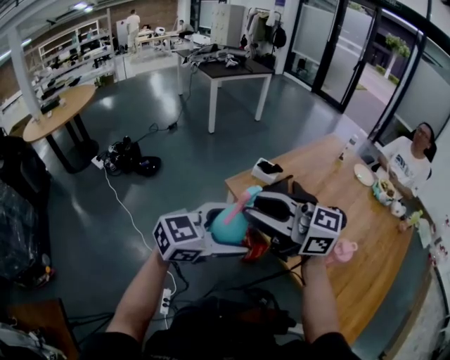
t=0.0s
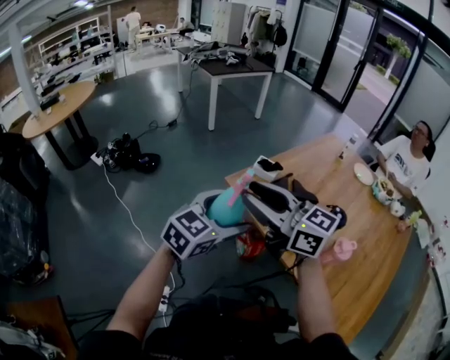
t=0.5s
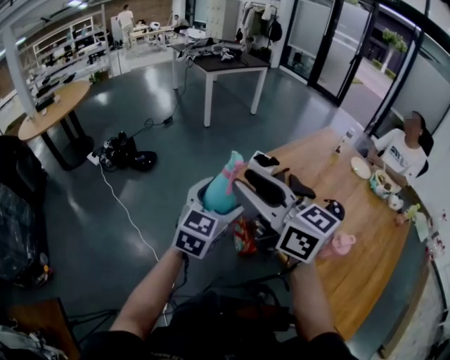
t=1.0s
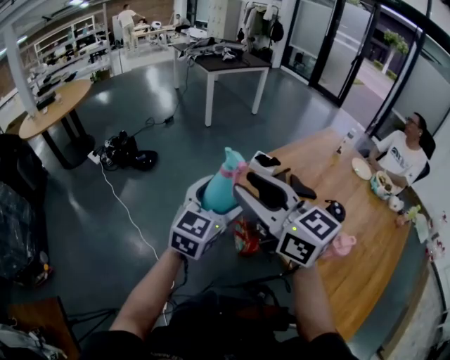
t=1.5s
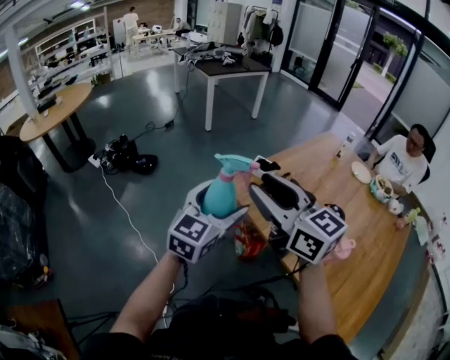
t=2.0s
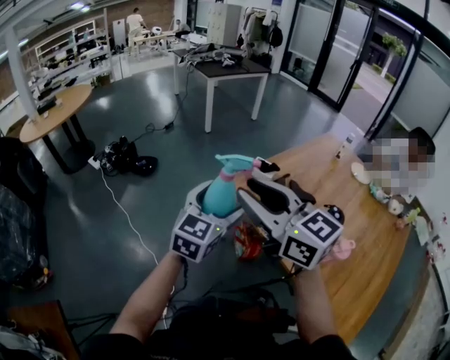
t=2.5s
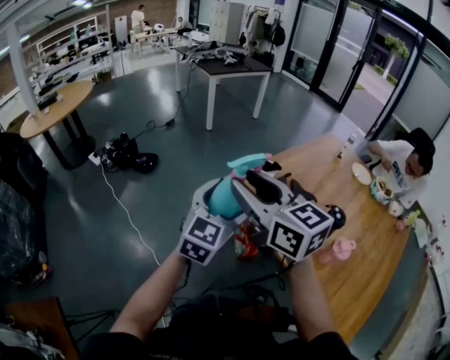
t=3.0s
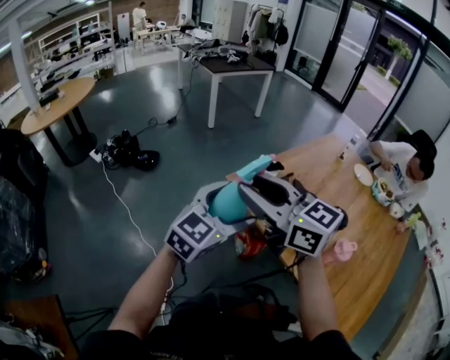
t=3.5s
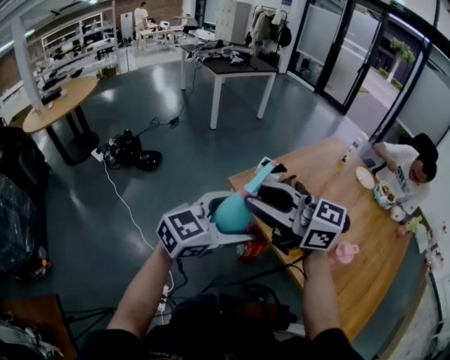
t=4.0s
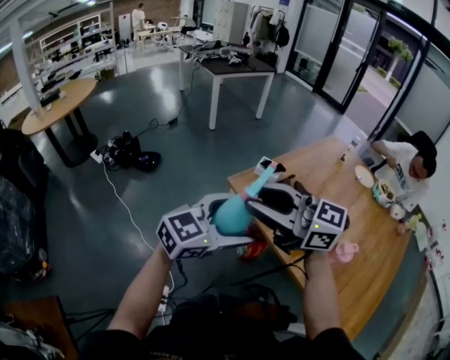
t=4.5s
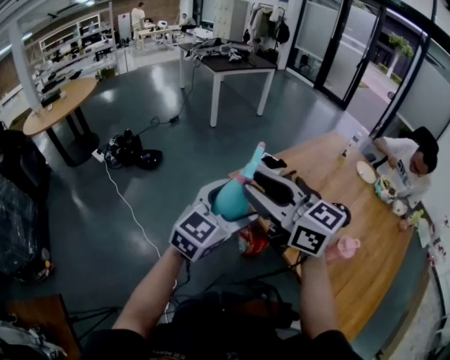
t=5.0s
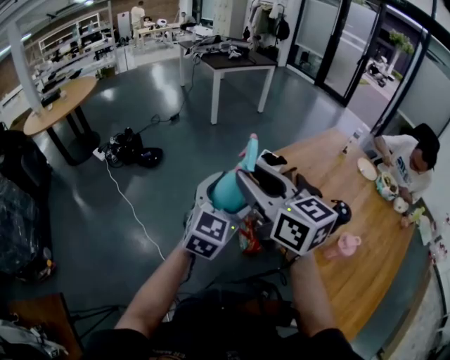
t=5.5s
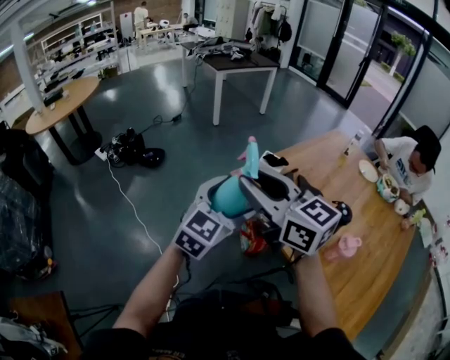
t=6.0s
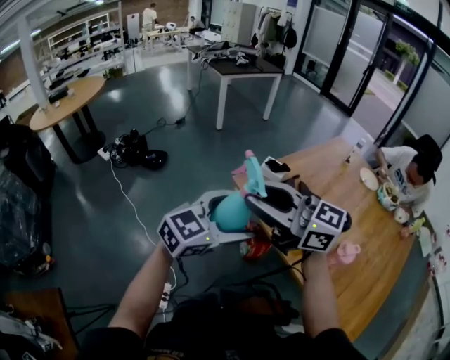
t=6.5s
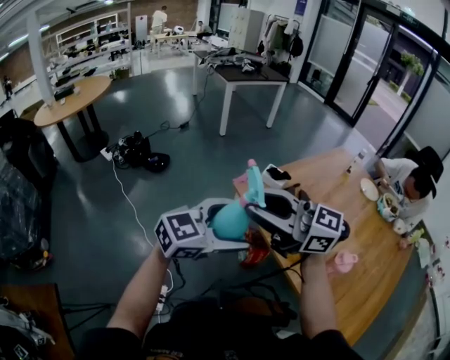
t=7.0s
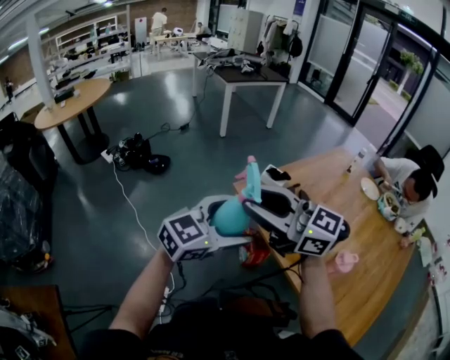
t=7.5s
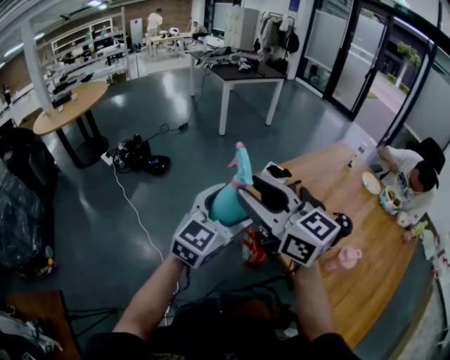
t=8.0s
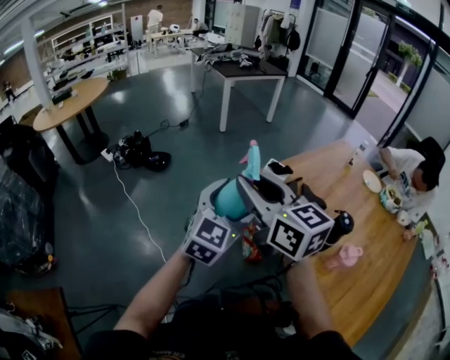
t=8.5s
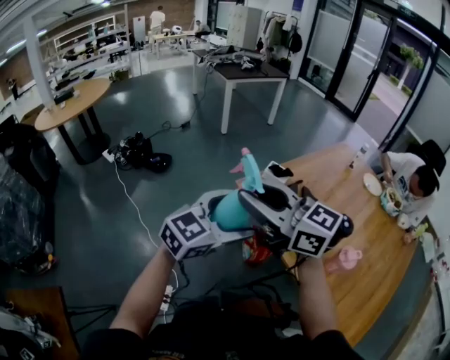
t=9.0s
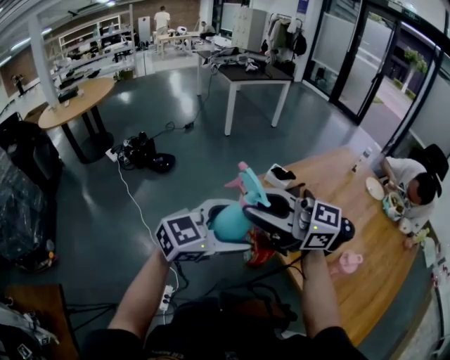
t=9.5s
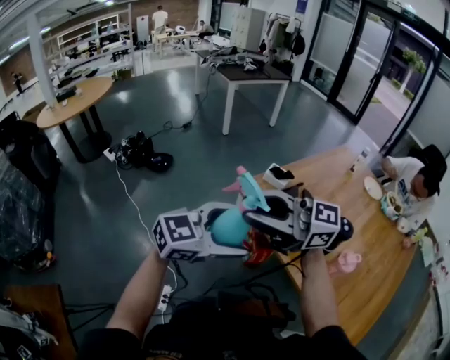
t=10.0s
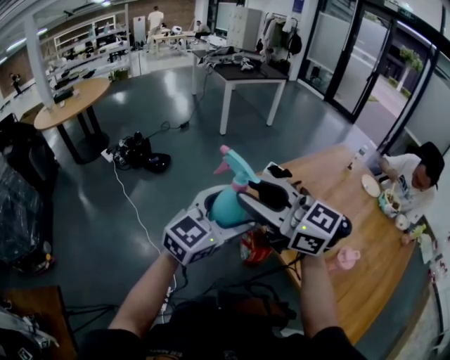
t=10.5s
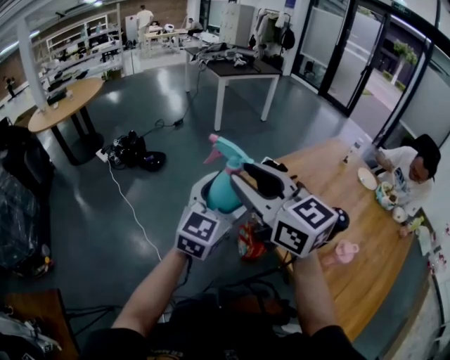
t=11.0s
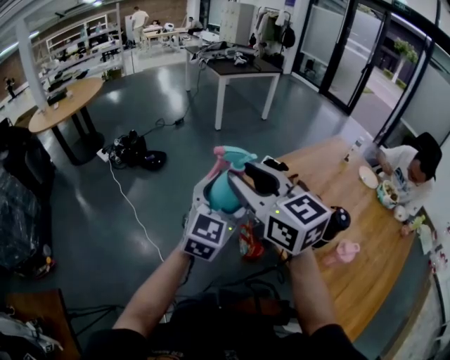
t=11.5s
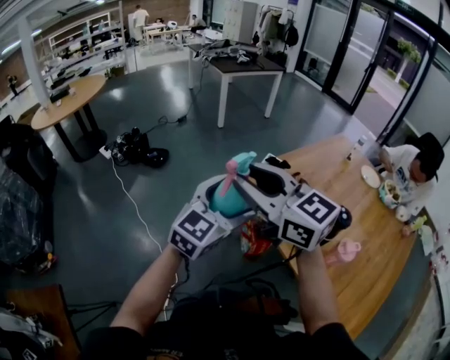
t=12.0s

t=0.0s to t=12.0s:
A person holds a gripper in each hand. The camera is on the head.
t=0.0s to t=2.0s: The left gripper shifts by about 10 cm, and turns by some 40 degrees, while the right gripper rotates about 30 degrees.
t=2.0s to t=4.0s: The right gripper changes its angle by approximately 30 degrees. The left gripper ends up about 5 cm from where it was, and changes its angle by roughly 30 degrees.
t=4.0s to t=6.0s: The left gripper swivels some 20 degrees. Meanwhile the right gripper turns by some 20 degrees.
t=8.0s to t=10.0s: The left gripper shifts by roughly 10 cm, and changes its angle by about 30 degrees; the right gripper swivels roughly 40 degrees.
t=10.0s to t=12.0s: The left gripper ends up some 5 cm from where it was, and changes its angle by about 30 degrees. The right gripper changes place by about 5 cm, and turns by some 30 degrees.

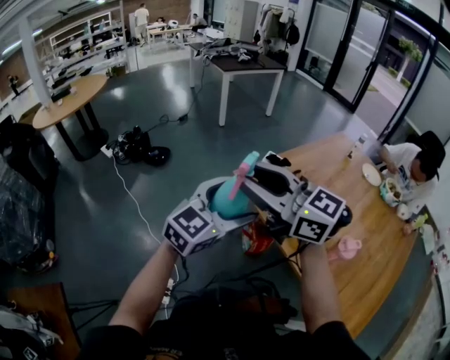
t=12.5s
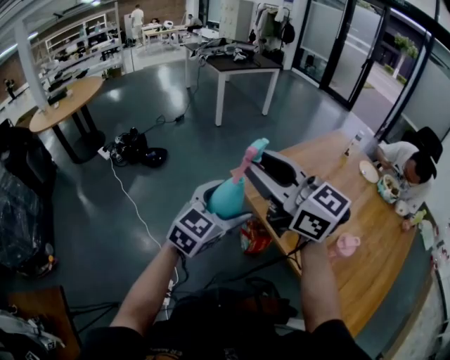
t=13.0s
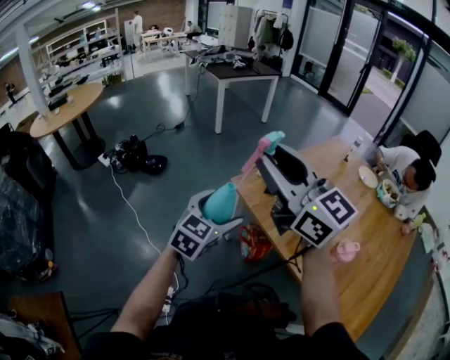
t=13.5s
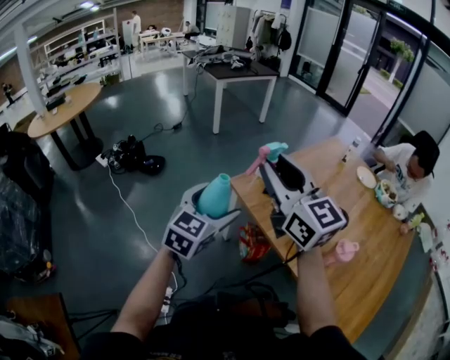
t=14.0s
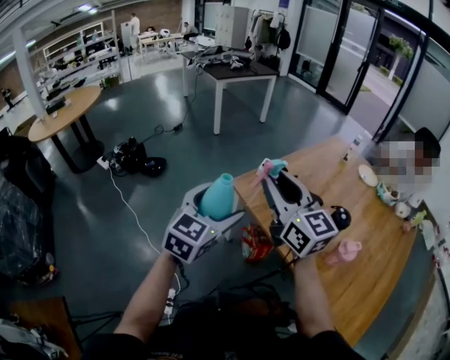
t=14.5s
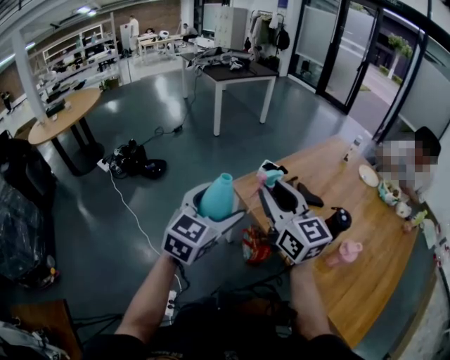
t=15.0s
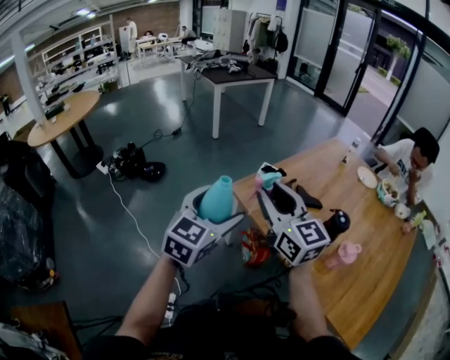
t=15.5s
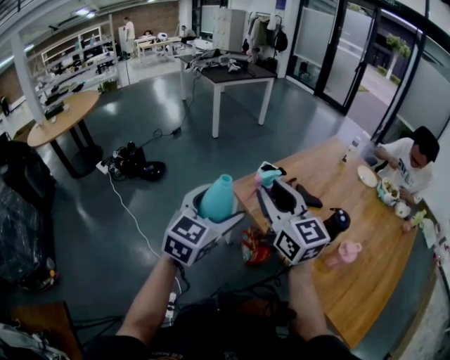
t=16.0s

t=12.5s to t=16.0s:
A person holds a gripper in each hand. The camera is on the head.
t=12.5s to t=14.5s: The right gripper heads to the right and forward, covering approximately 10 cm, and changes its angle by about 30 degrees.
t=14.5s to t=16.0s: There are only small adjustments of the grippers.

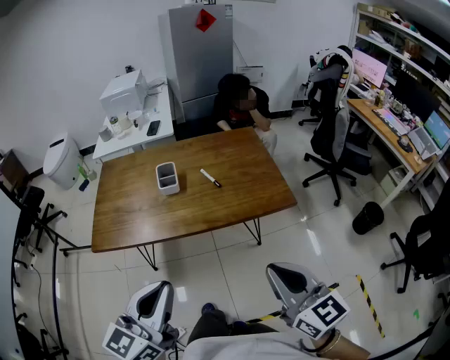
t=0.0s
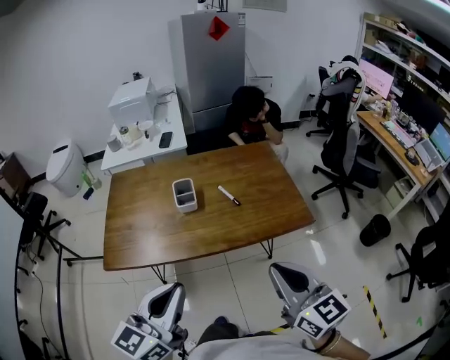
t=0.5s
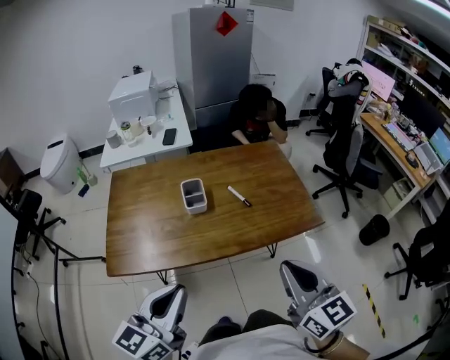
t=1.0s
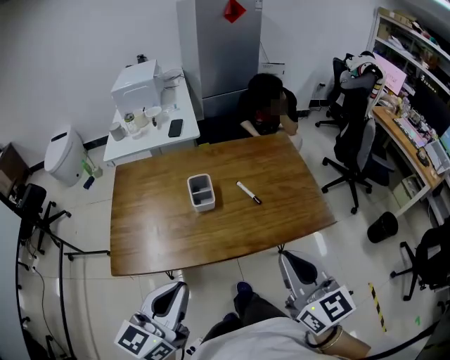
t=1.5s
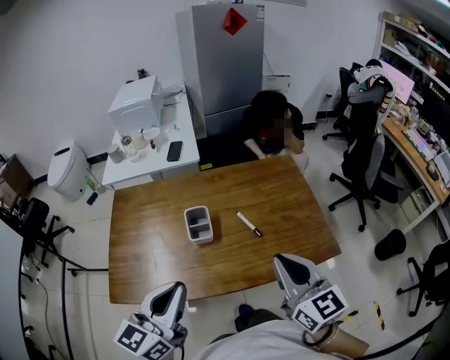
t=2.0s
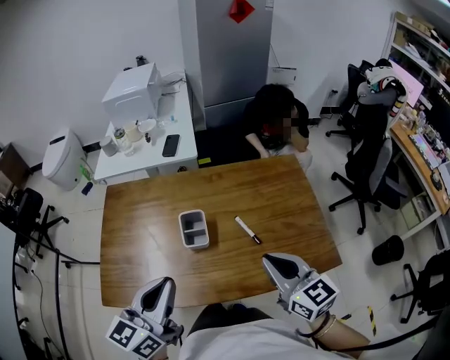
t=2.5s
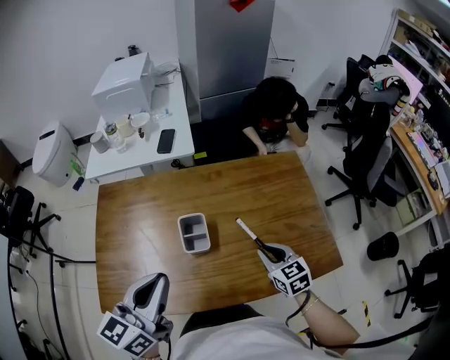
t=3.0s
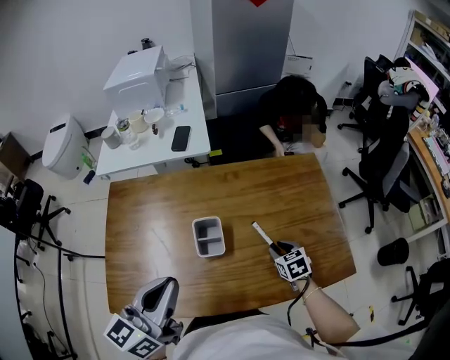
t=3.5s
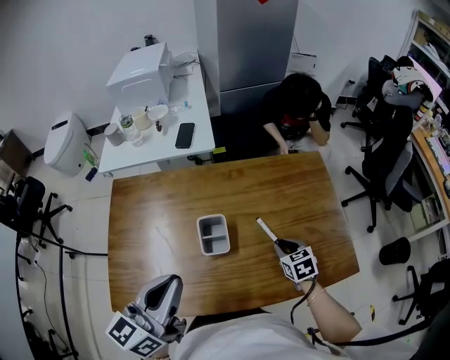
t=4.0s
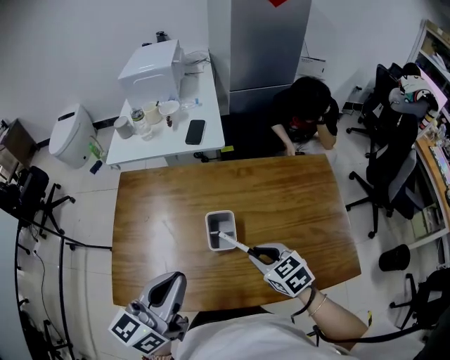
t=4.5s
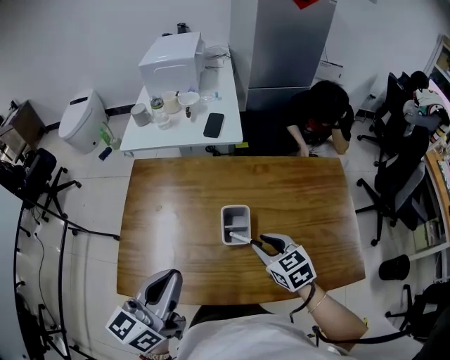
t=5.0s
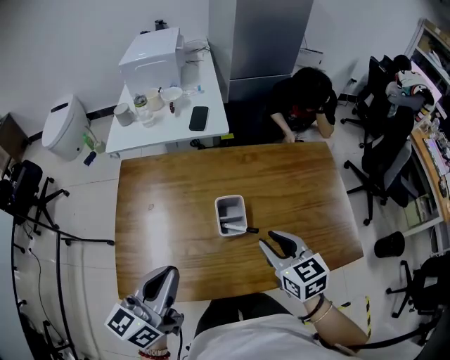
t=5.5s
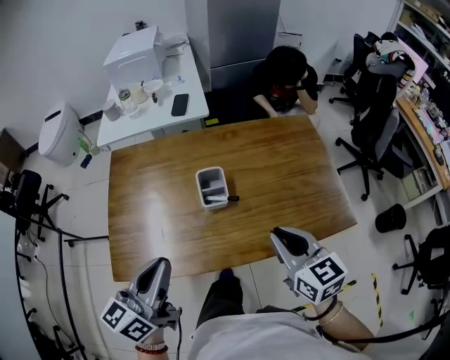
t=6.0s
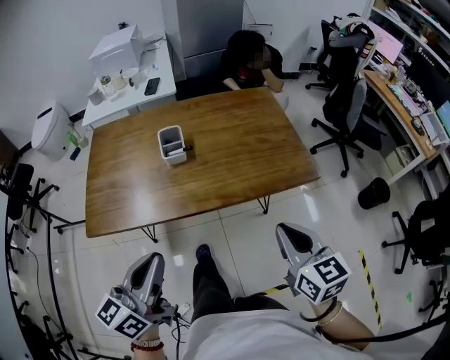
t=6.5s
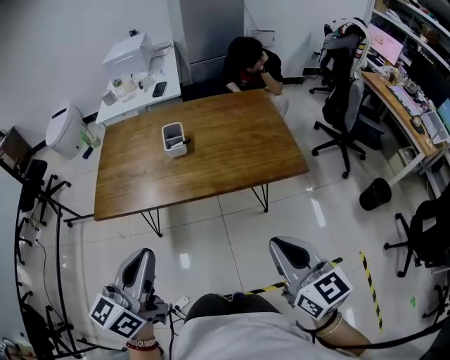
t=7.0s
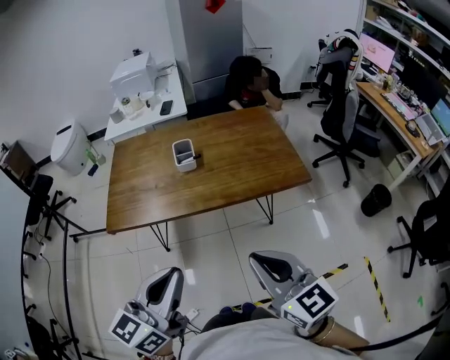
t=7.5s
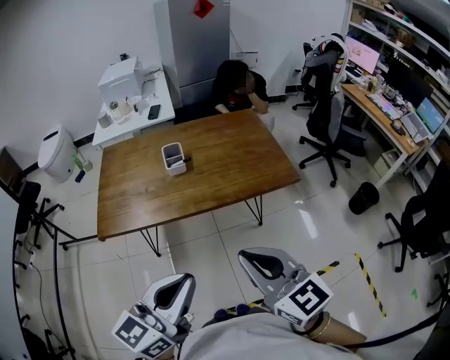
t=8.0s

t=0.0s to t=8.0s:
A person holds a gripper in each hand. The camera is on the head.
t=0.0s to t=2.0s: Both grippers move forward and to the left, about 30 cm.
t=2.0s to t=4.0s: The right gripper moves downward and forward, some 35 cm, and tips its fingers downward by some 50 degrees; the left gripper travels forward and to the left by some 15 cm.
t=4.0s to t=6.0s: The left gripper goes about 10 cm backward and to the left, while the right gripper heads upward, backward and to the left, covering roughly 30 cm, and swivels approximately 30 degrees.
t=6.0s to t=8.0s: The right gripper shifts roughly 35 cm backward, while the left gripper heads backward and to the right, covering about 35 cm.

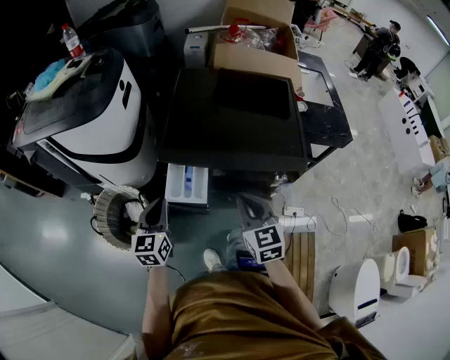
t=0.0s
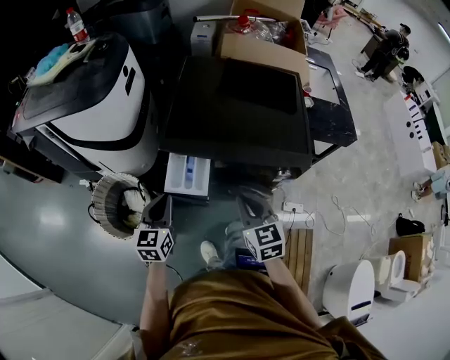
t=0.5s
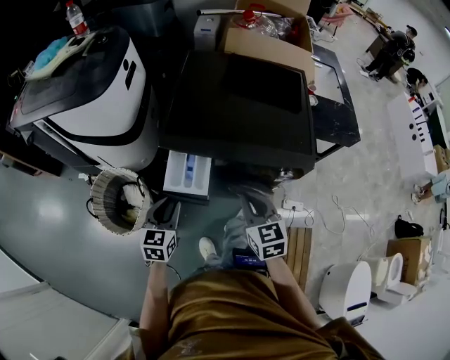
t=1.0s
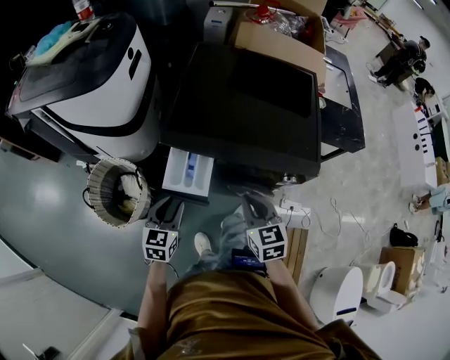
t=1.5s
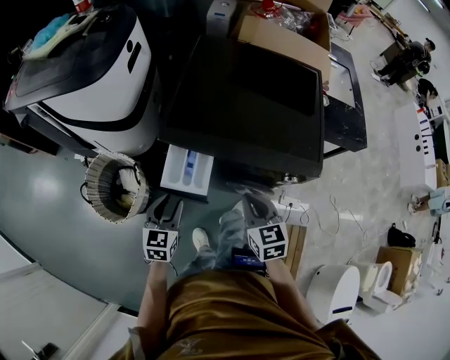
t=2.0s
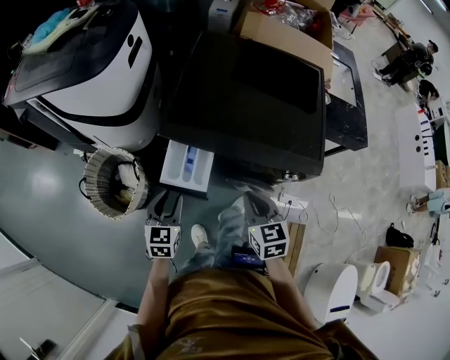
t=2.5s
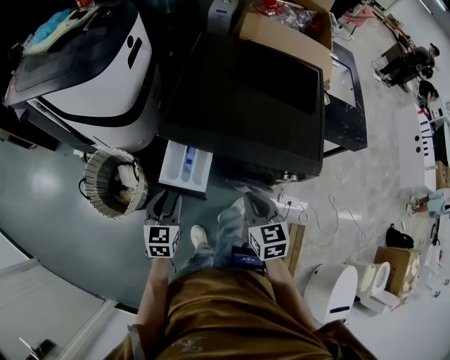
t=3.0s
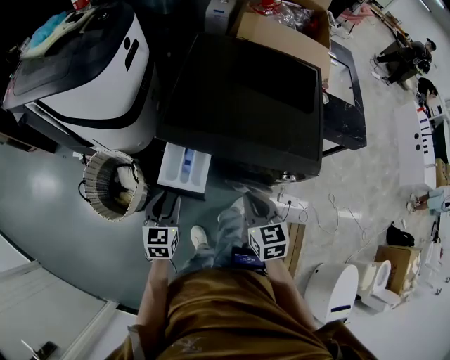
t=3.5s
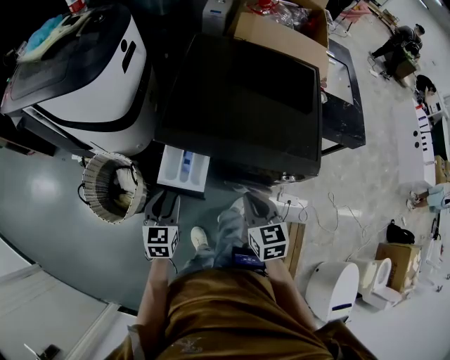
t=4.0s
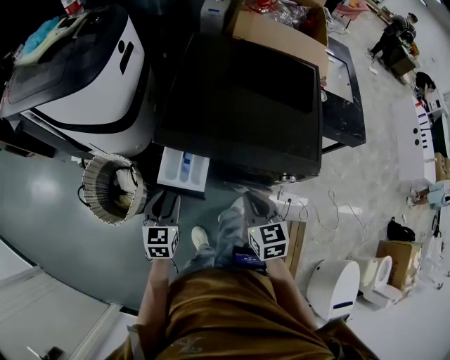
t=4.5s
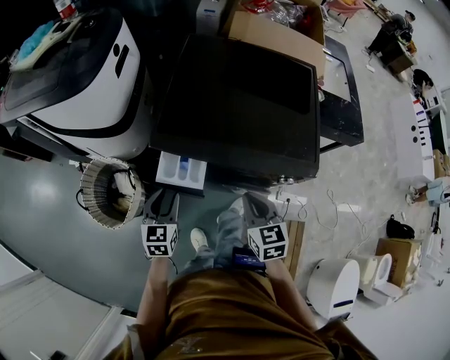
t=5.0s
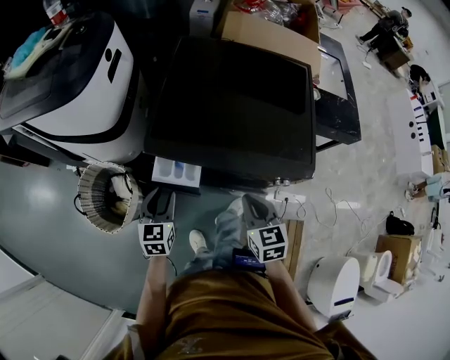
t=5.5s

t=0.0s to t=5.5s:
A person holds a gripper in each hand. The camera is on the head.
t=0.0s to t=2.0s: Both grippers move downward, roughly 10 cm. The left gripper opens its fingers.
t=2.0s to t=3.5s: The grippers stay close to where they were, moving slightly.
t=3.5s to t=5.5s: The left gripper heads forward, covering about 5 cm.
